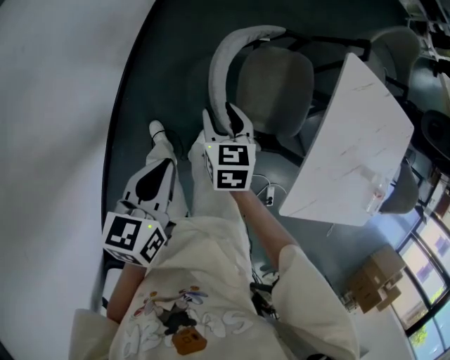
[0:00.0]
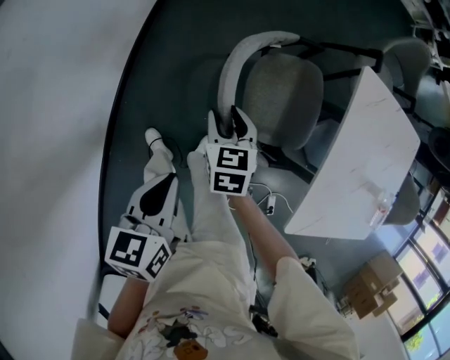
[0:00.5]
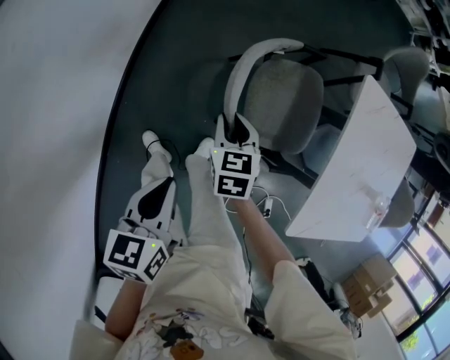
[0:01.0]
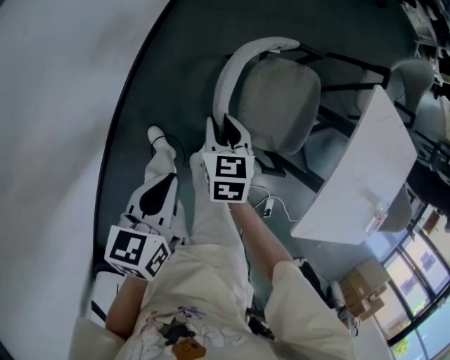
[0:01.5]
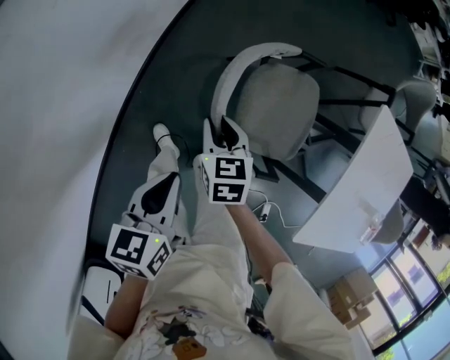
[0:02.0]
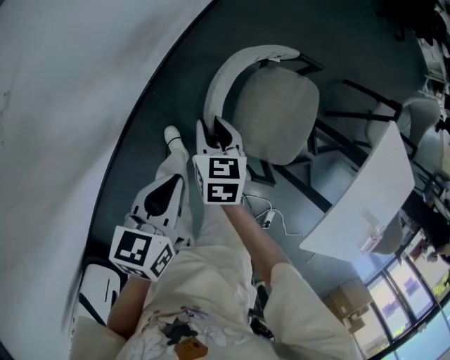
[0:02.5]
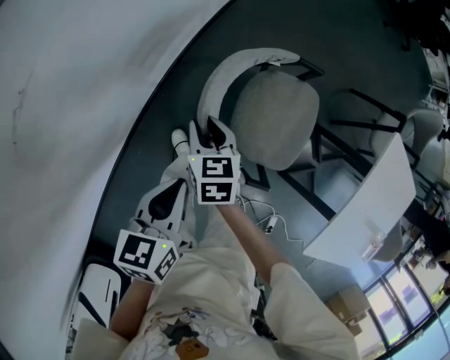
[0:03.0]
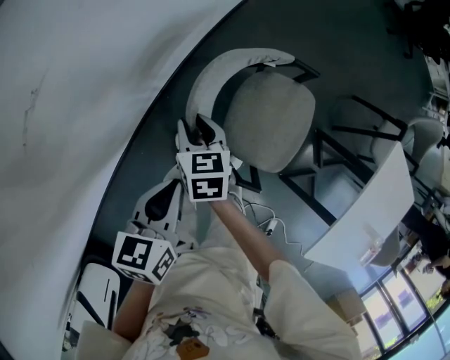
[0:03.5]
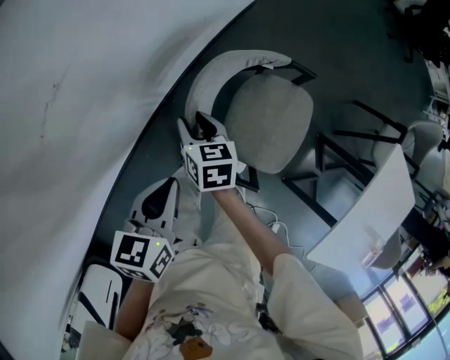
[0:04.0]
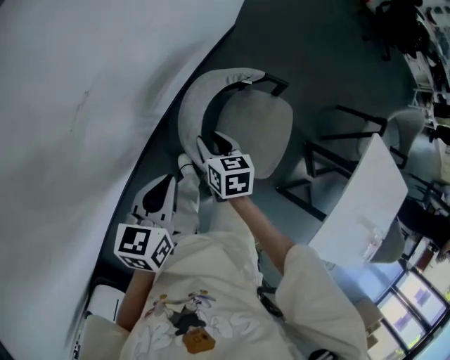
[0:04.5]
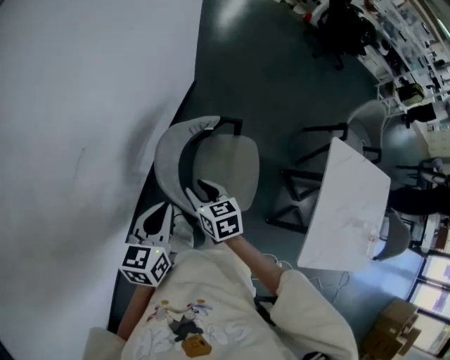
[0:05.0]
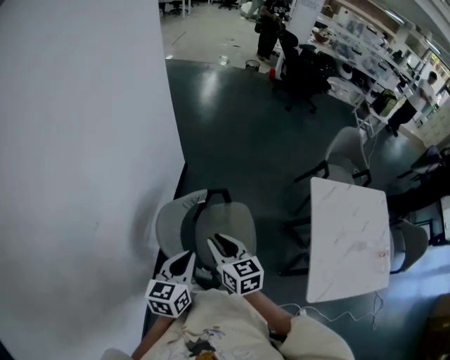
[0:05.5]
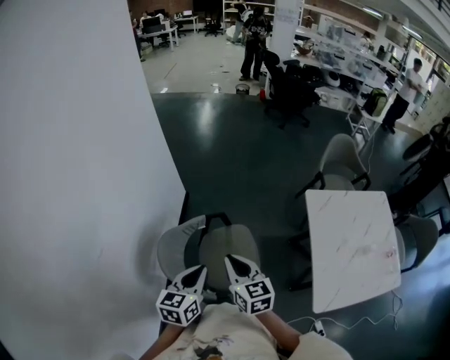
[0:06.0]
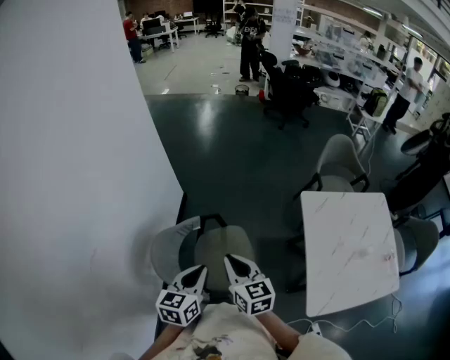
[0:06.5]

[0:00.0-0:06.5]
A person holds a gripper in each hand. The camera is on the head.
0:00.0 to 0:02.0: Both grippers move to the left and downward, roughly 15 cm.
0:02.0 to 0:04.5: The two grippers go about 15 cm to the left and upward.
0:04.5 to 0:06.5: The left gripper moves approximately 30 cm, and rotates approximately 30 degrees; the right gripper changes place by about 40 cm, swivels some 40 degrees, and closes its fingers.

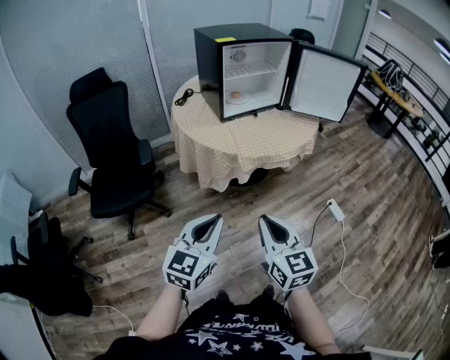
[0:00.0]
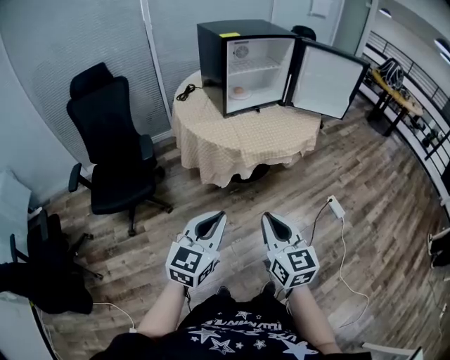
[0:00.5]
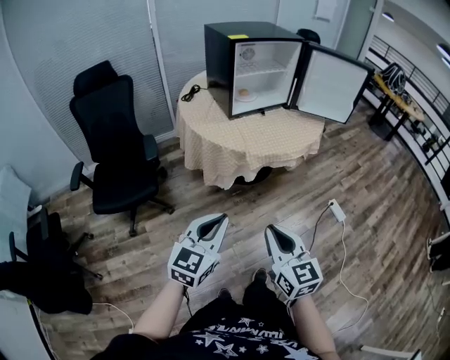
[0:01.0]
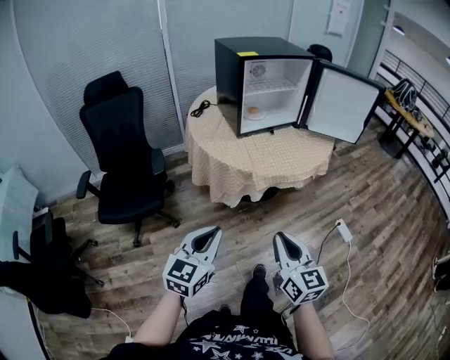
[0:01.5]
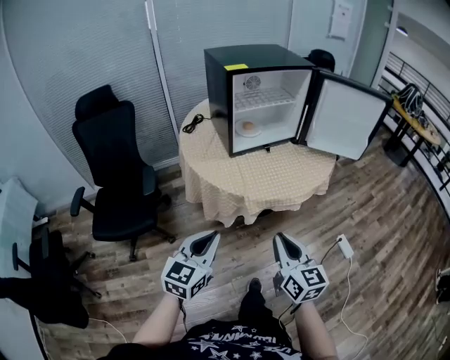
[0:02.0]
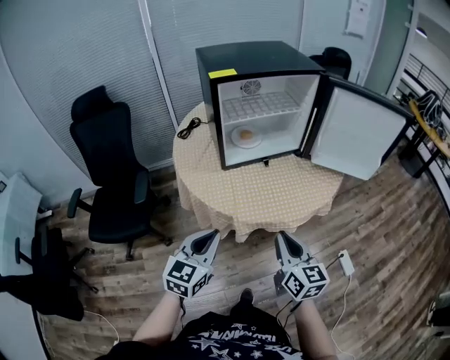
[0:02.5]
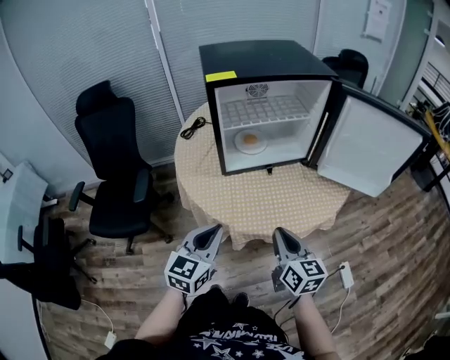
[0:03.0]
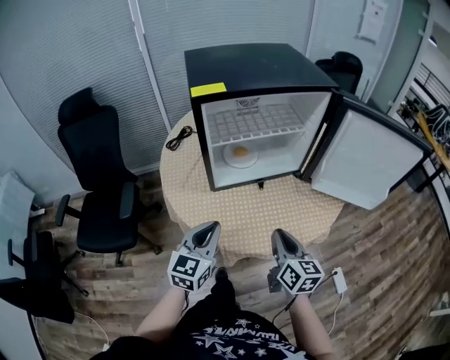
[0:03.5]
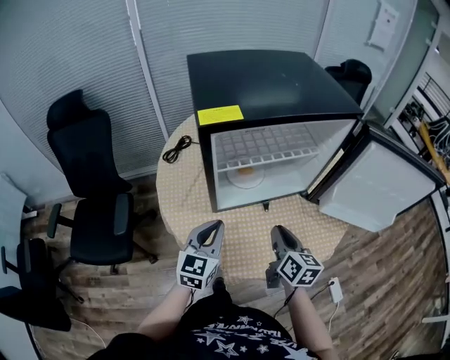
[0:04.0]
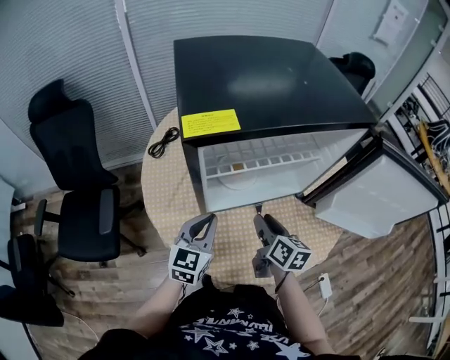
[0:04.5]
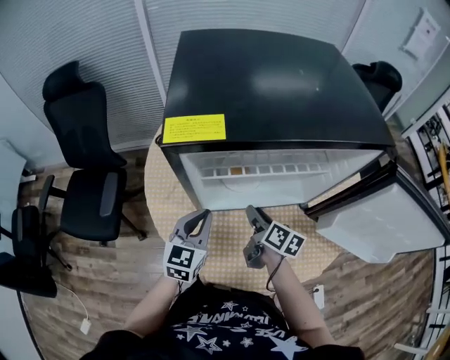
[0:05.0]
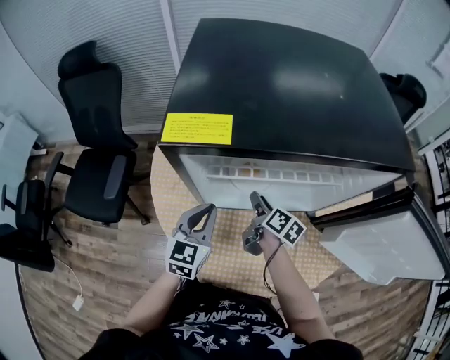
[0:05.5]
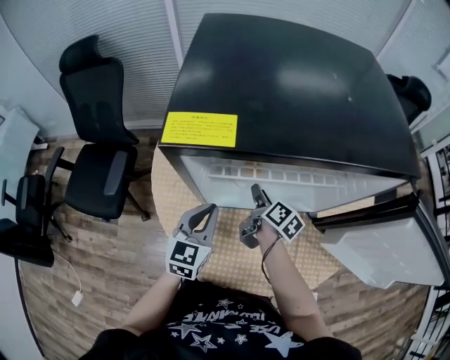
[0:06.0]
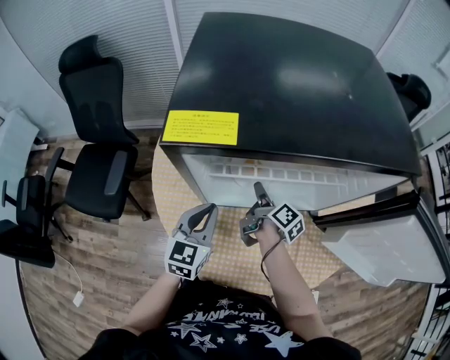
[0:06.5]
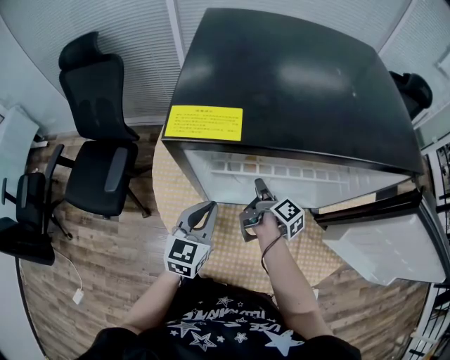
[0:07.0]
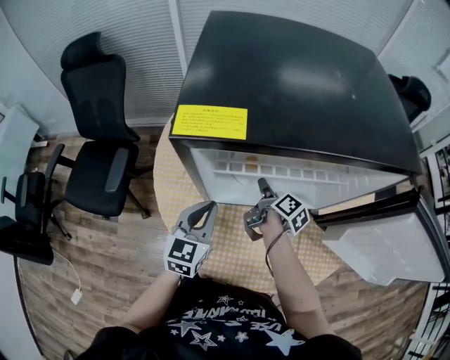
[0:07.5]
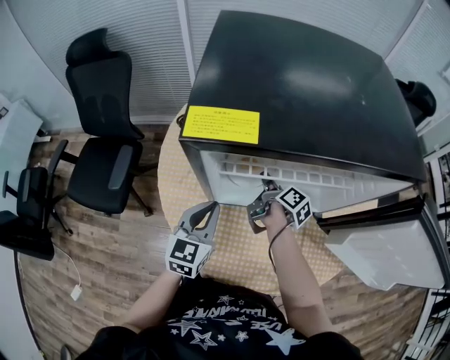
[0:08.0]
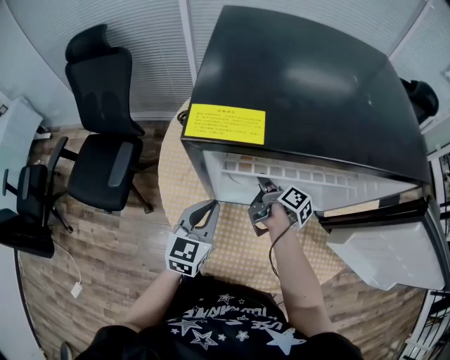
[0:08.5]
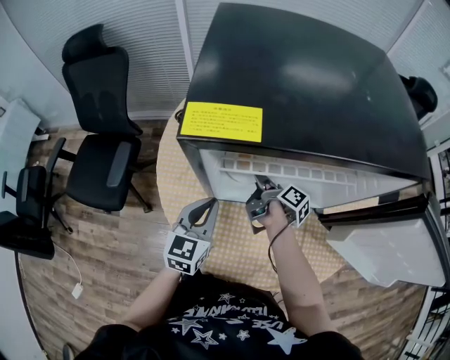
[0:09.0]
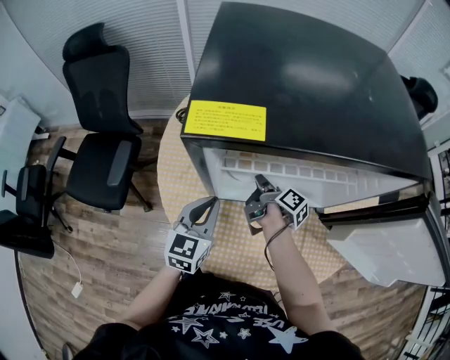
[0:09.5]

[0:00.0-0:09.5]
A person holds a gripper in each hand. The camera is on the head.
0:00.0 to 0:02.0: The grippers both shift forward by some 15 cm.
0:02.0 to 0:04.0: The two grippers go roughly 40 cm forward.
0:04.0 to 0:05.5: The right gripper travels forward and downward by some 20 cm, changes its angle by some 30 degrees, and opens up. The left gripper moves forward, approximately 10 cm.
0:07.5 to 0:09.5: The right gripper closes its fingers.

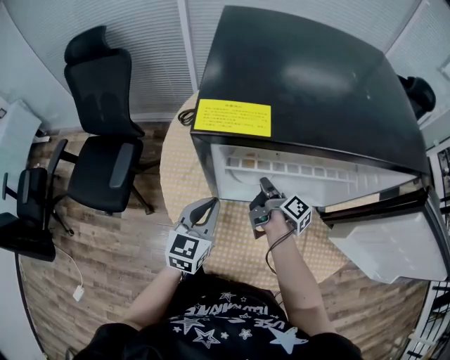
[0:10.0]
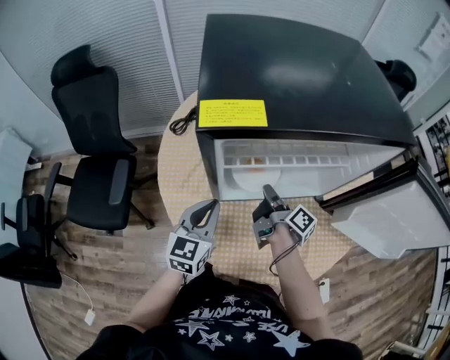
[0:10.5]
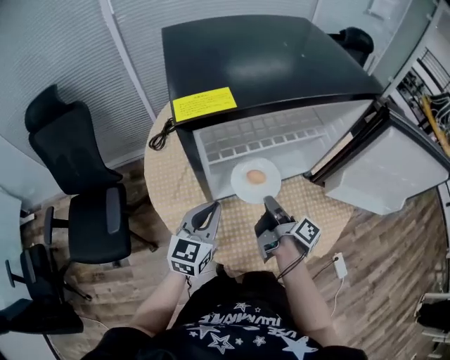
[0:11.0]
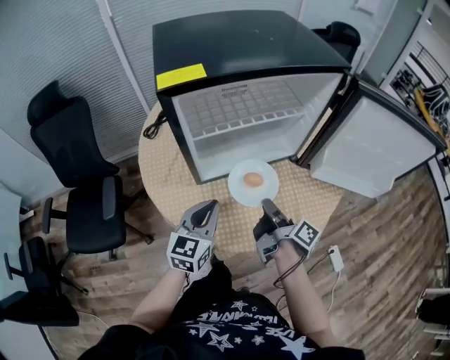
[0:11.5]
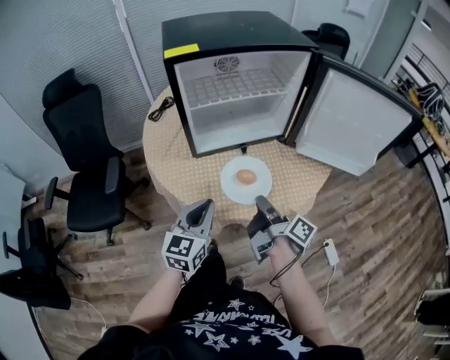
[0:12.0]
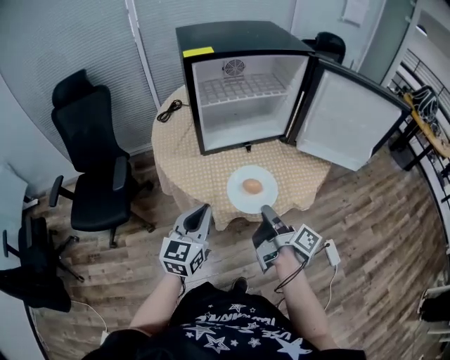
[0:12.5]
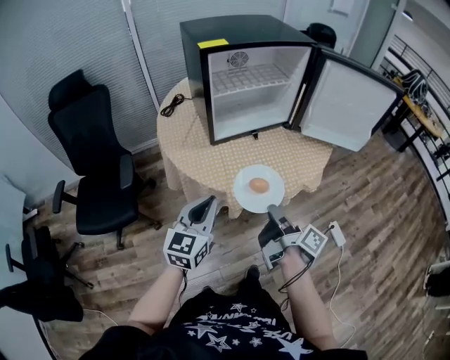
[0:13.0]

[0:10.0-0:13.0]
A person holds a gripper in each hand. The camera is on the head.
0:10.0 to 0:11.5: The left gripper travels backward and to the right by about 10 cm, and changes its angle by approximately 20 degrees. The right gripper goes about 25 cm backward and to the right, and changes its angle by approximately 20 degrees.
0:11.5 to 0:13.0: Both grippers move backward, some 25 cm.

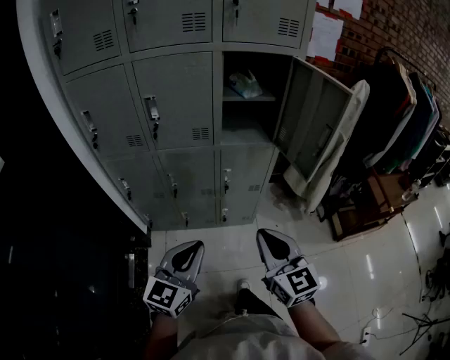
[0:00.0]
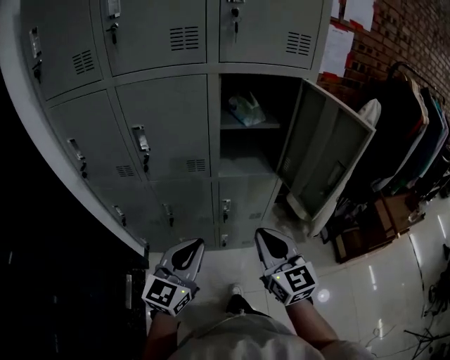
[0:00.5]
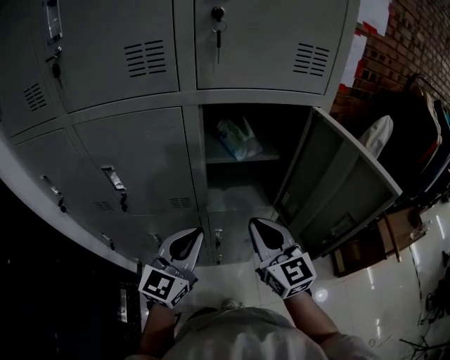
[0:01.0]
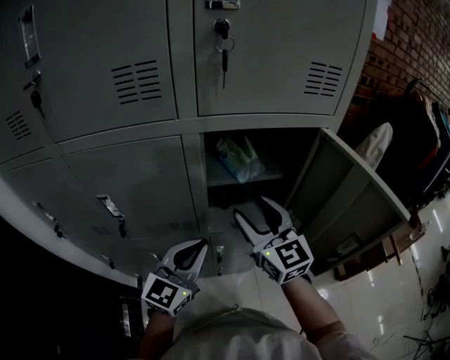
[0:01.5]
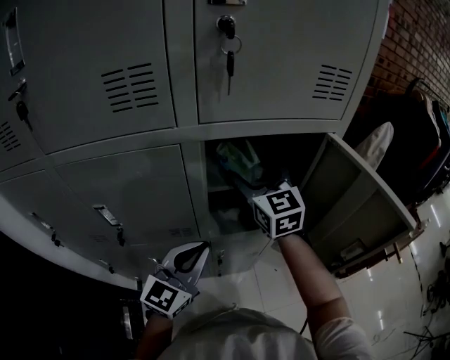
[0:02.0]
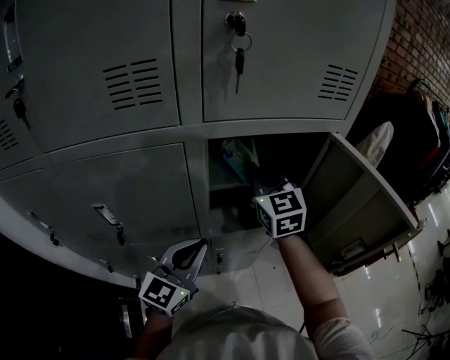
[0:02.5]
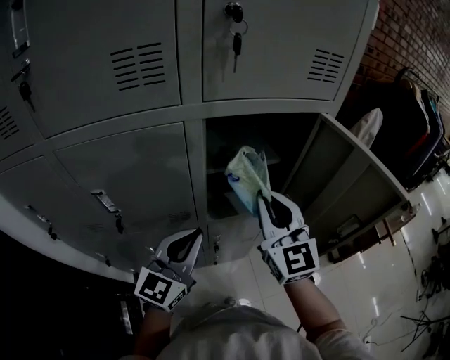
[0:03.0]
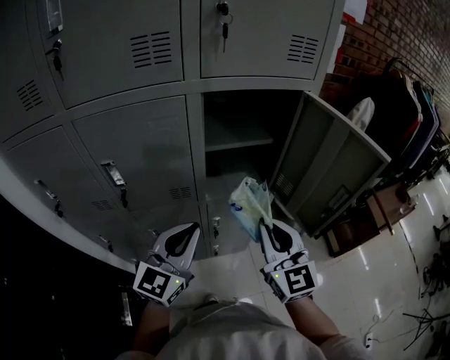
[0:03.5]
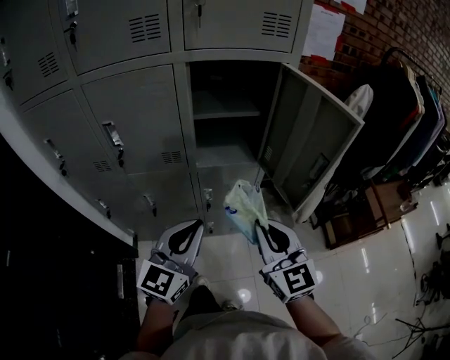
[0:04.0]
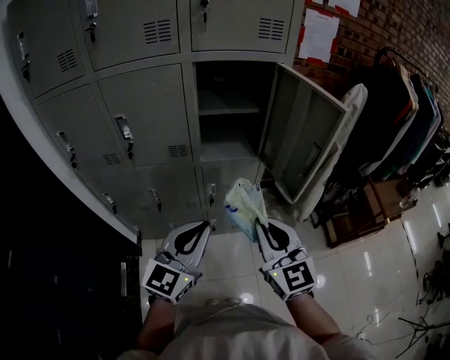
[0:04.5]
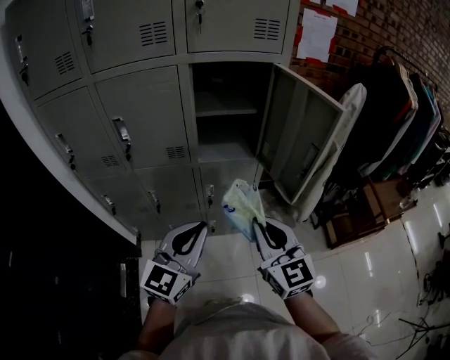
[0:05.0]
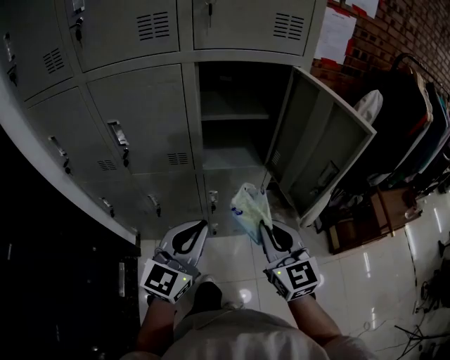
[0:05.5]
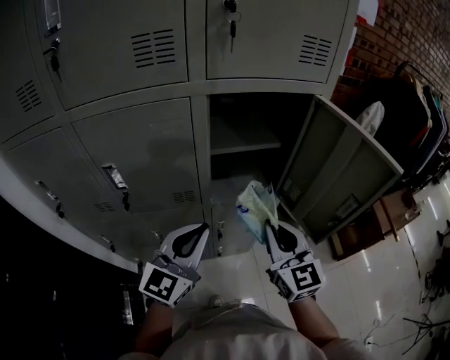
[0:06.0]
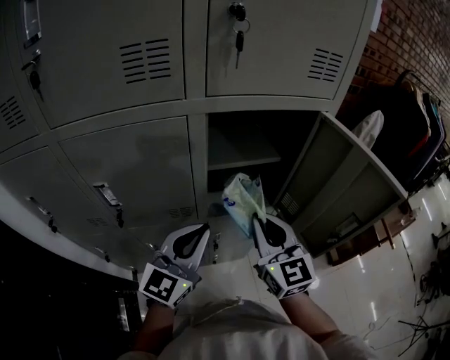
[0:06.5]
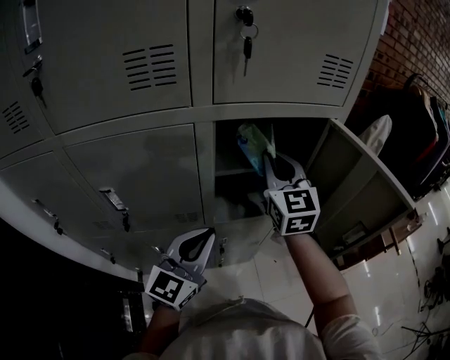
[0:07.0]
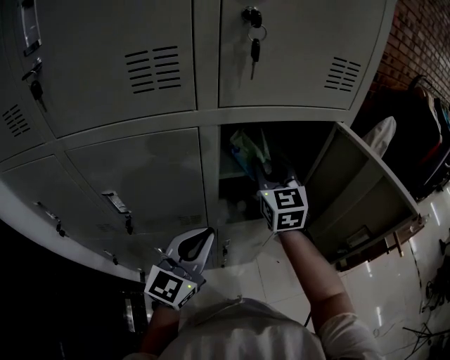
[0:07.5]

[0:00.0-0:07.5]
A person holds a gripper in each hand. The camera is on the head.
0:00.0 to 0:02.0: Both grippers move forward, some 50 cm. The right gripper opens.
0:02.0 to 0:04.0: The left gripper travels backward by about 20 cm; the right gripper goes roughly 35 cm backward, and closes its fingers.
0:04.0 to 0:05.5: The right gripper reaches some 5 cm backward, then returns.
0:05.5 to 0:07.5: The left gripper shifts some 20 cm forward and to the left, while the right gripper is displaced forward by about 35 cm.
